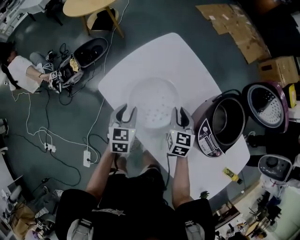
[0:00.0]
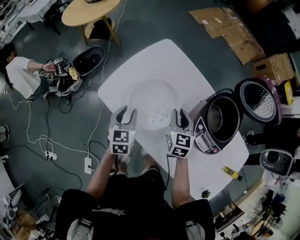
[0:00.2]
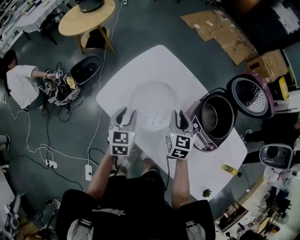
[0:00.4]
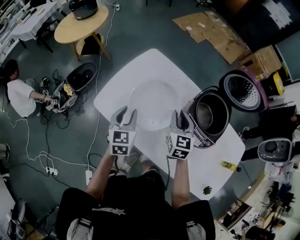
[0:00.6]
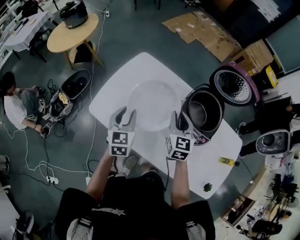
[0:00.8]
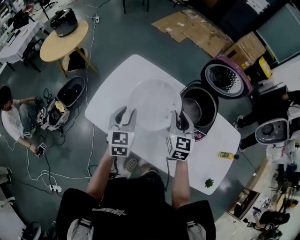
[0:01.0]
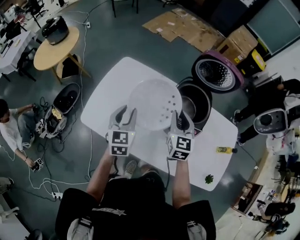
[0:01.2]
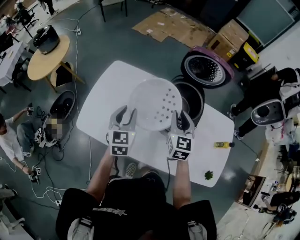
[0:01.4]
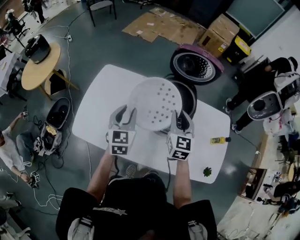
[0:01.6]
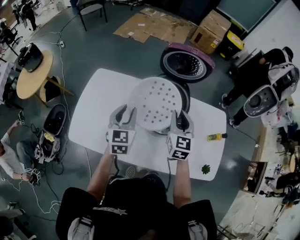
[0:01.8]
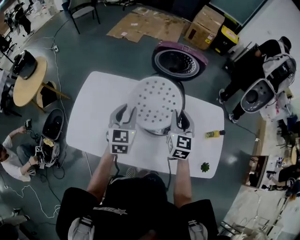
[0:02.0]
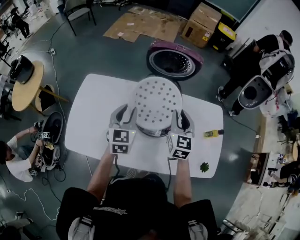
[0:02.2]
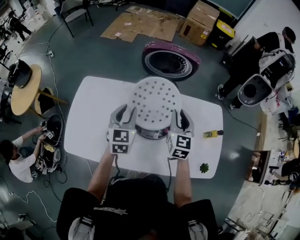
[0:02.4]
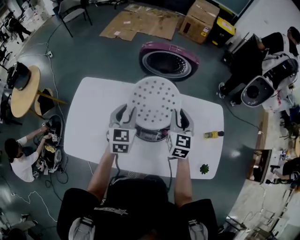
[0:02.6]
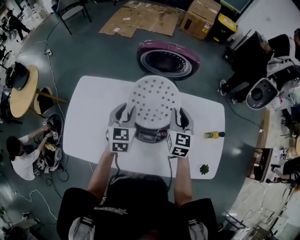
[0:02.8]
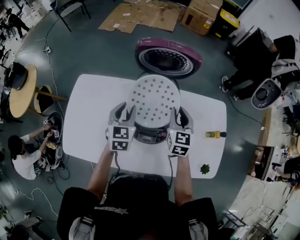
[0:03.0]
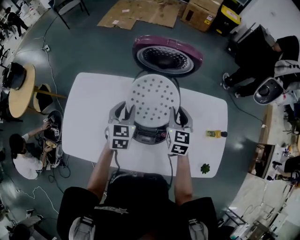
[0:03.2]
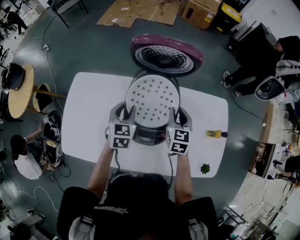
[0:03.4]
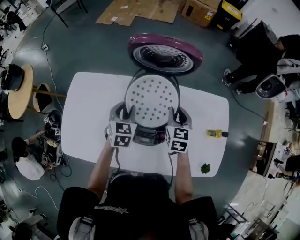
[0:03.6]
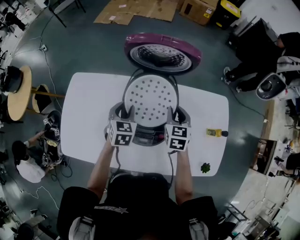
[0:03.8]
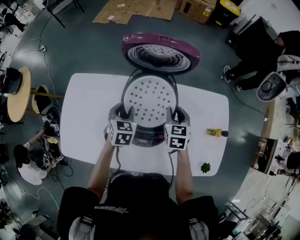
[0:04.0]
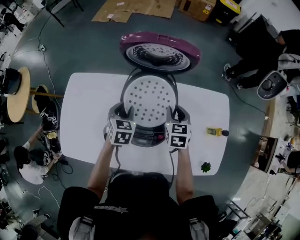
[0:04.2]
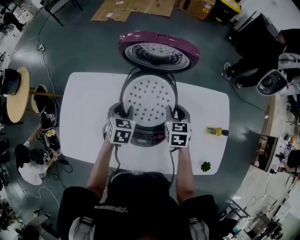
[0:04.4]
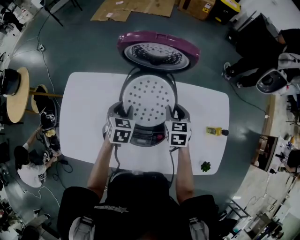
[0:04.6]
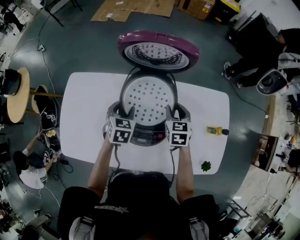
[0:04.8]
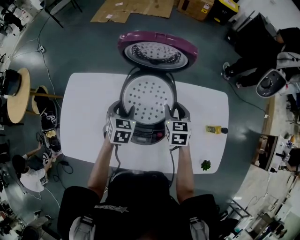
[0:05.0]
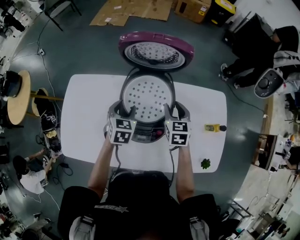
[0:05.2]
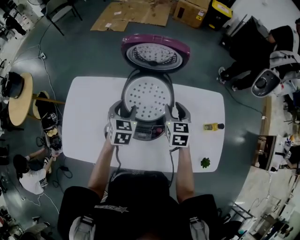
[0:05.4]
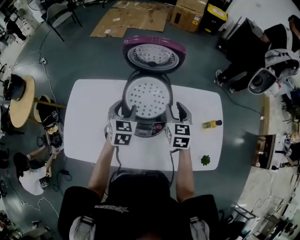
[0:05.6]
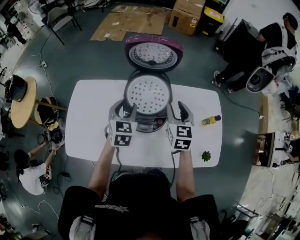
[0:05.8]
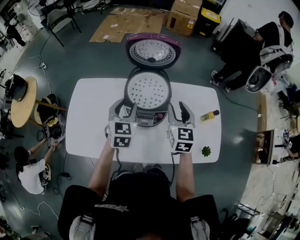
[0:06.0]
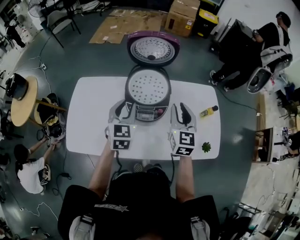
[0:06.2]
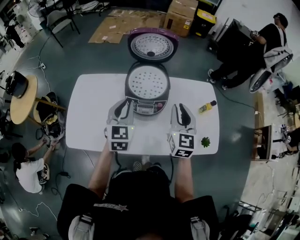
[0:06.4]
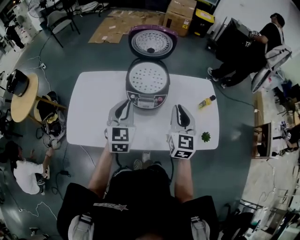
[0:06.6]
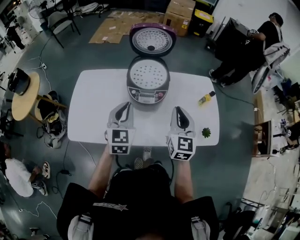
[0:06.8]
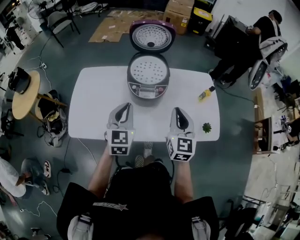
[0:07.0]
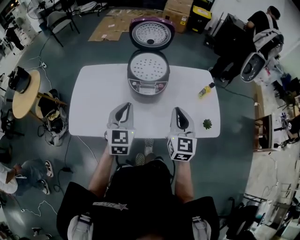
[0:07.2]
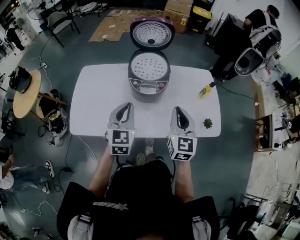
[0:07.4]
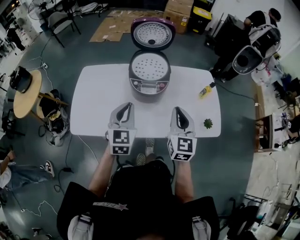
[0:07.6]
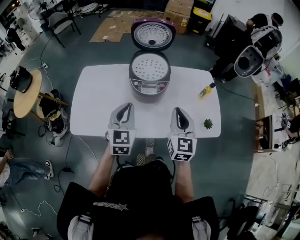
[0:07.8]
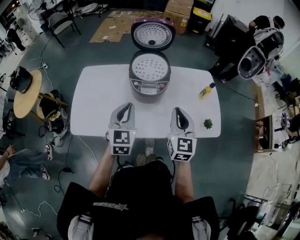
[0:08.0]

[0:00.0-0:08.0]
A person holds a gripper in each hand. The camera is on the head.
0.0 to 1.6 s: The right gripper shifts by about 30 cm, and swivels roughly 30 degrees. The left gripper moves some 25 cm, and turns by some 30 degrees.
1.6 to 3.2 s: The right gripper goes roughly 15 cm to the right, forward and downward, while the left gripper heads forward, to the right and downward, covering approximately 20 cm.
3.2 to 4.8 s: Both grippers travel together downward, about 5 cm.
4.8 to 6.4 s: The right gripper moves backward and upward, roughly 25 cm, and angles its fingers upward, by about 30 degrees. Meanwhile the left gripper travels upward and backward by some 25 cm, points its fingers approximately 30 degrees further upward, and closes up.
6.4 to 8.0 s: The two grippers go about 15 cm backward.

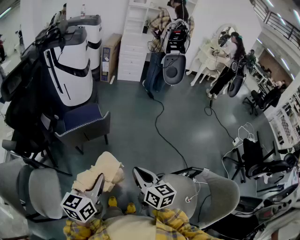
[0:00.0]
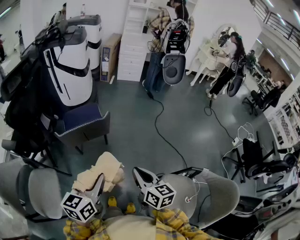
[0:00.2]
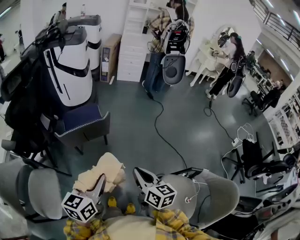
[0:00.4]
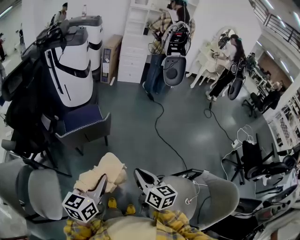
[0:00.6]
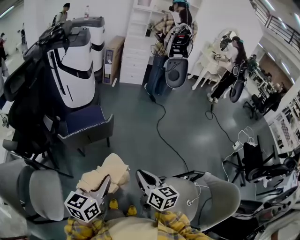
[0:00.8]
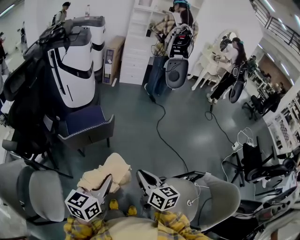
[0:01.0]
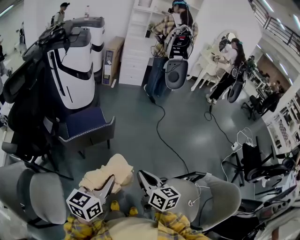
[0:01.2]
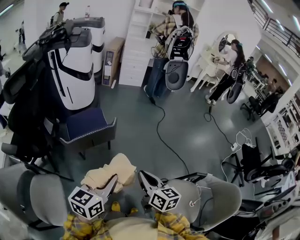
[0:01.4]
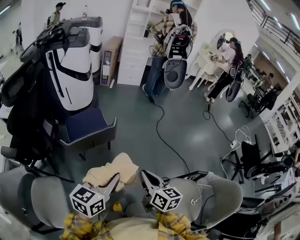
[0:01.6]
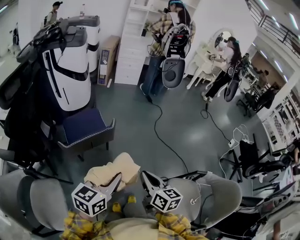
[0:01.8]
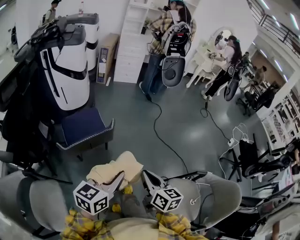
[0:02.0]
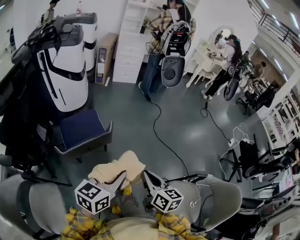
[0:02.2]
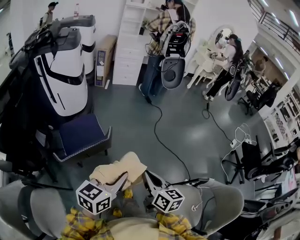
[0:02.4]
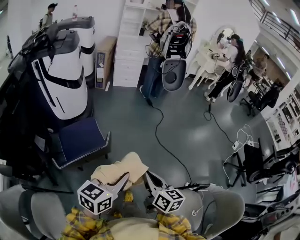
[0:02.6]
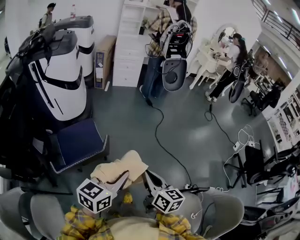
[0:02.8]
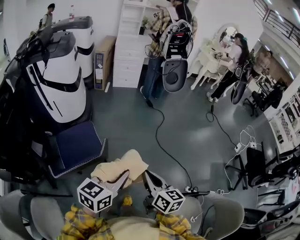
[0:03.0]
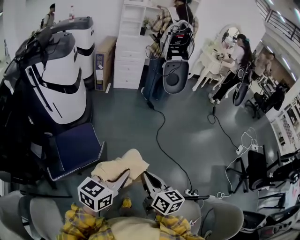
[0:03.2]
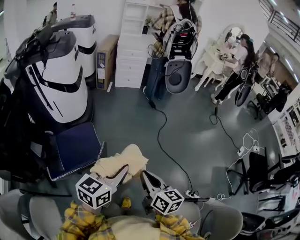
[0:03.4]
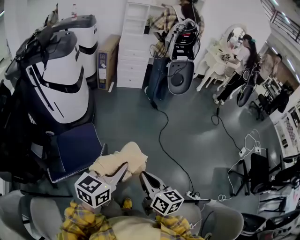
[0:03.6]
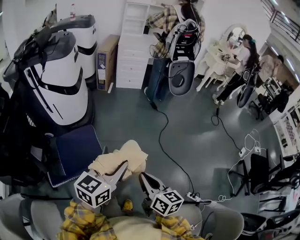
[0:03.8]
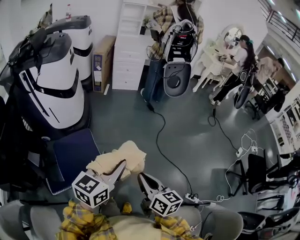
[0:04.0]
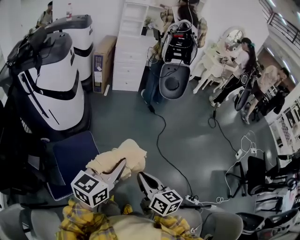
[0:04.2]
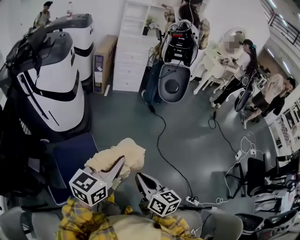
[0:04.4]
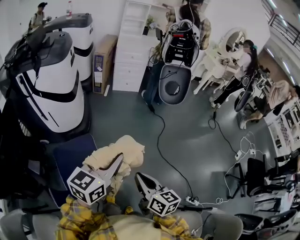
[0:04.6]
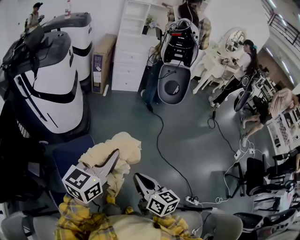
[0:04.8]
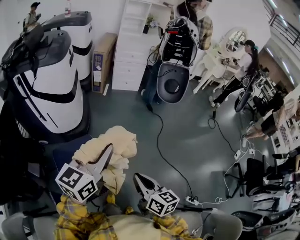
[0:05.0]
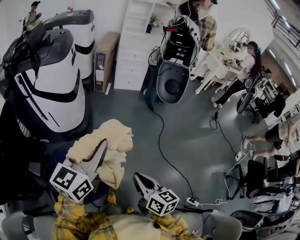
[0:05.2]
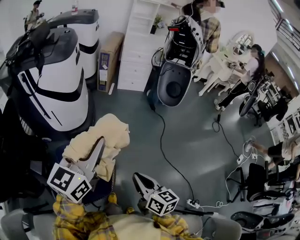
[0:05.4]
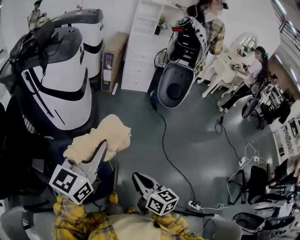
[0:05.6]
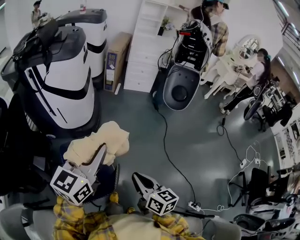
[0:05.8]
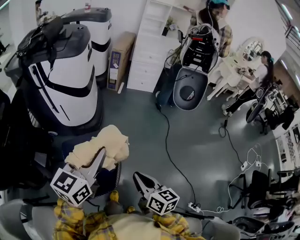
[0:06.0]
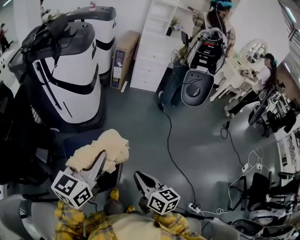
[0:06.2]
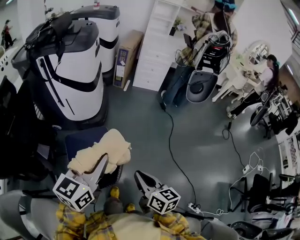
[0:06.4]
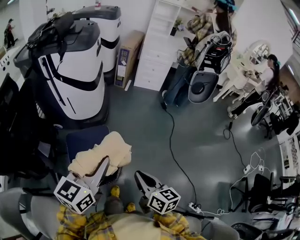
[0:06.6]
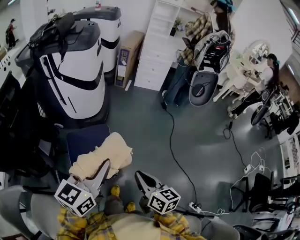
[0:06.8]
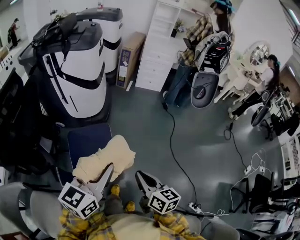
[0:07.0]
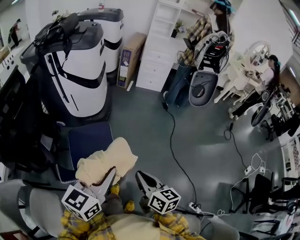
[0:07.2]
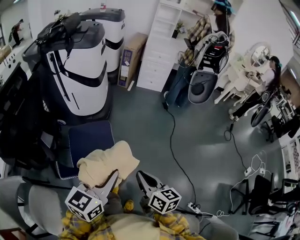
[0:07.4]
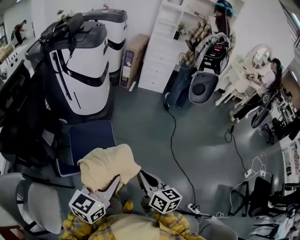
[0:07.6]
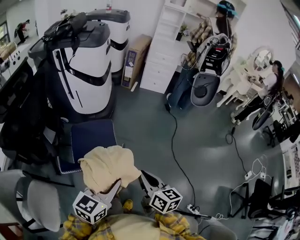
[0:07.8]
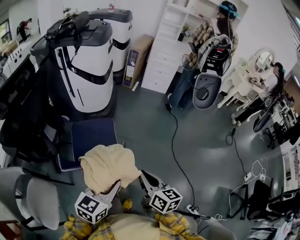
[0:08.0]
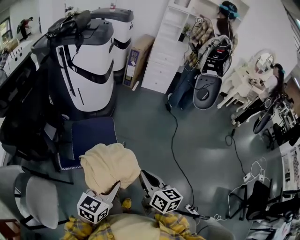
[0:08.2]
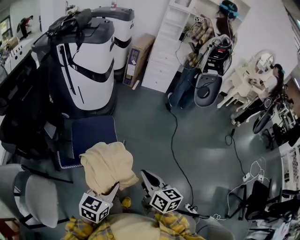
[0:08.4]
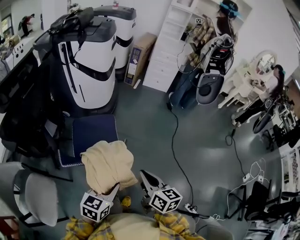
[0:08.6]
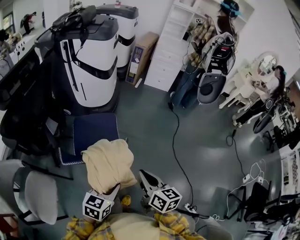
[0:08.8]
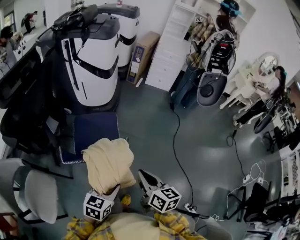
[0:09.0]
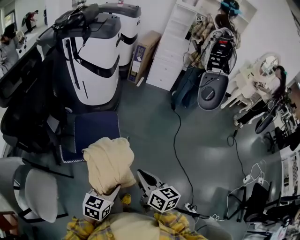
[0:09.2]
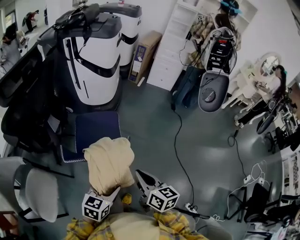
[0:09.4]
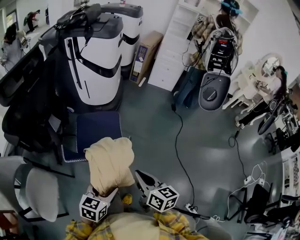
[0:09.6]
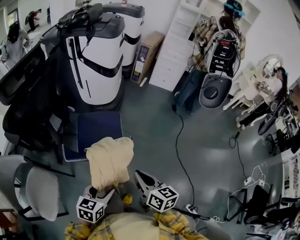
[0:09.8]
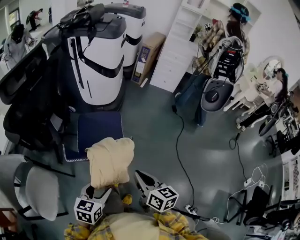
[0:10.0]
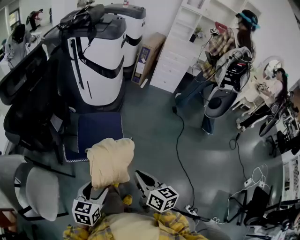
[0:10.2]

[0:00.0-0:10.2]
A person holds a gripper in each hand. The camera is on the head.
0.0 to 1.4 s: There are only small adjustments of the grippers.
1.4 to 3.0 s: The grippers both shift forward by approximately 20 cm.
3.0 to 4.4 s: The two grippers go some 15 cm forward and to the left.
4.4 to 5.8 s: The right gripper travels to the left by about 5 cm; the left gripper is displaced to the left and forward by about 15 cm.
5.8 to 7.2 s: The right gripper moves backward, roughly 10 cm, while the left gripper goes roughly 15 cm backward.
7.2 to 8.8 s: The right gripper shifts about 5 cm backward; the left gripper shifts some 20 cm downward and backward, swivels approximately 20 degrees, and opens its fingers.
8.8 to 10.2 s: The left gripper is displaced to the left by roughly 10 cm, and opens up.

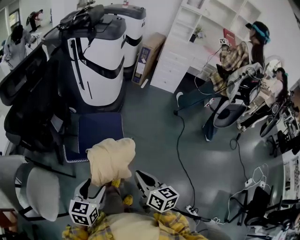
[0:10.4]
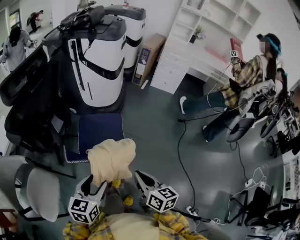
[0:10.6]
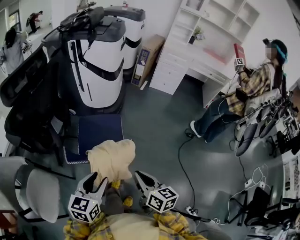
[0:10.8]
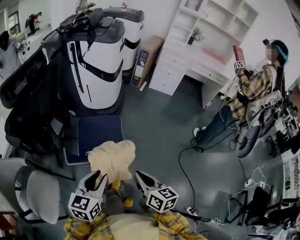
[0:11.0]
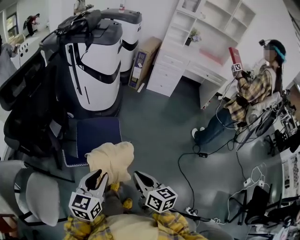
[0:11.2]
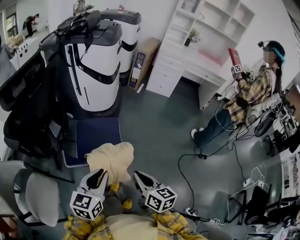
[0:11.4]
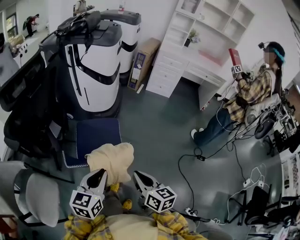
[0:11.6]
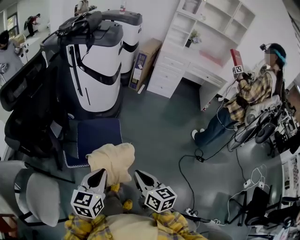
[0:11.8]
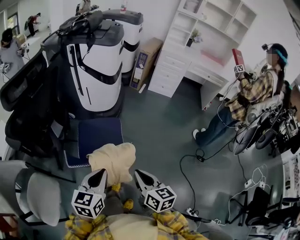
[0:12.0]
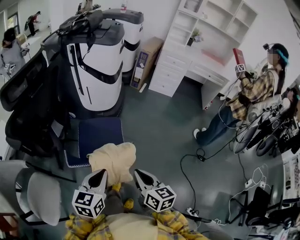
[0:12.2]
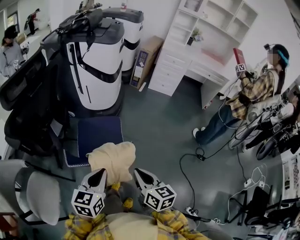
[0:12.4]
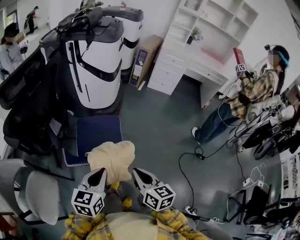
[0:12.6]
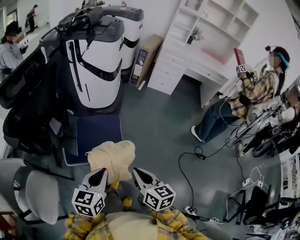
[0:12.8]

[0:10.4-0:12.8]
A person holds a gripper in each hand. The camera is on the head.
10.4 to 11.6 s: The left gripper moves upward and forward, roughly 10 cm, and closes its fingers.
11.6 to 12.8 s: The grippers make only small movements.

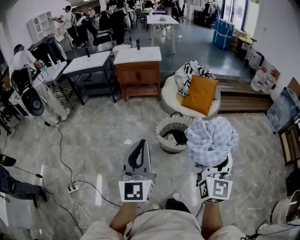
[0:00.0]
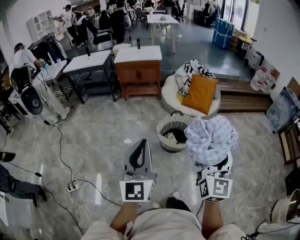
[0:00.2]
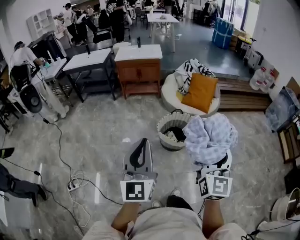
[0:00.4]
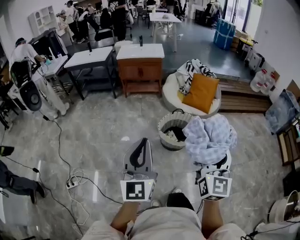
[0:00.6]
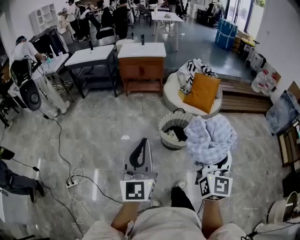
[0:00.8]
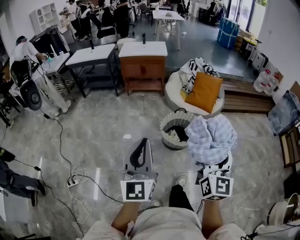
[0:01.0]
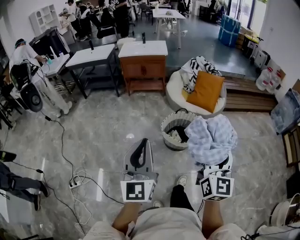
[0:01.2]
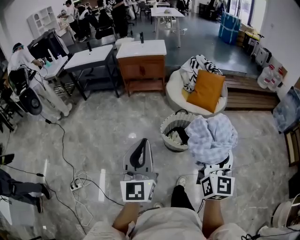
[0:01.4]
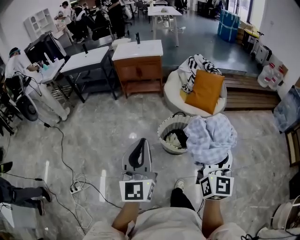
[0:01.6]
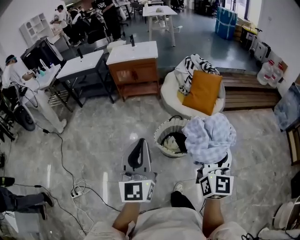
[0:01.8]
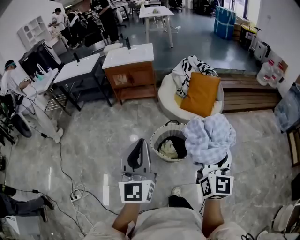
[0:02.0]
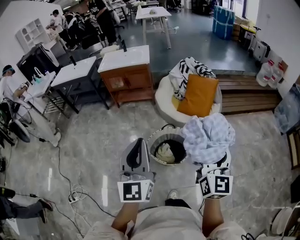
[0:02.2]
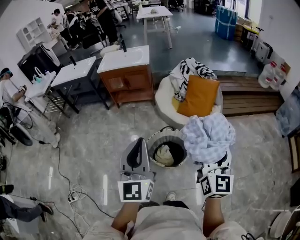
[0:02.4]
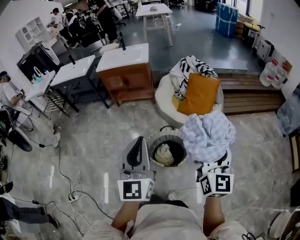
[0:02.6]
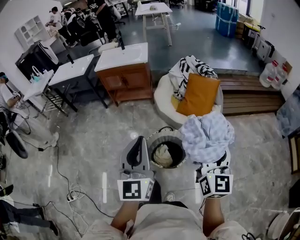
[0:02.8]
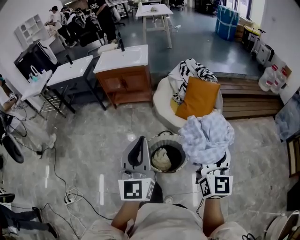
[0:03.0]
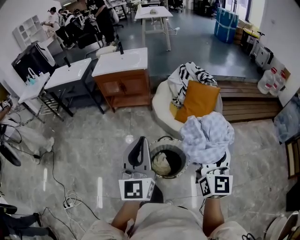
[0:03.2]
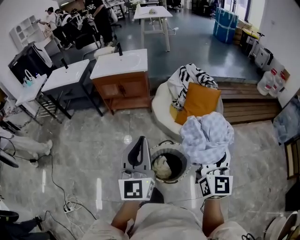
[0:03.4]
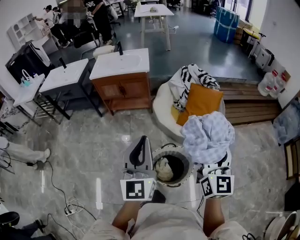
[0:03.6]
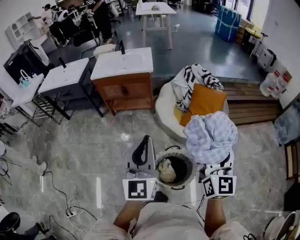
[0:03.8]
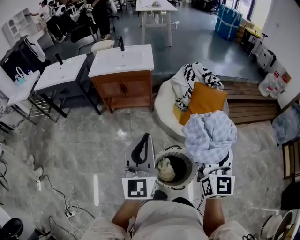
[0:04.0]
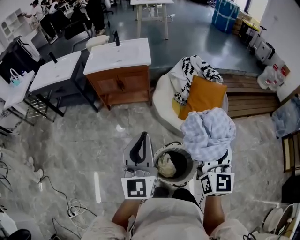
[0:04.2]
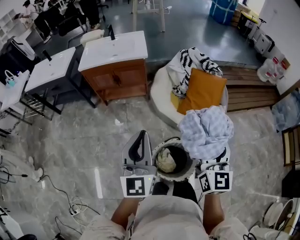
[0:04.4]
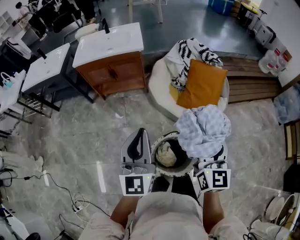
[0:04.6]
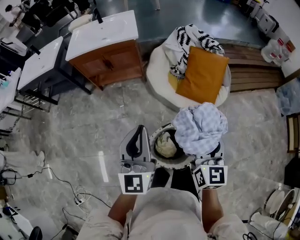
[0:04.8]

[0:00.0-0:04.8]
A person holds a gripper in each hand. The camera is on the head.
0.0 to 1.6 s: Both grippers move forward, about 10 cm.
1.6 to 3.2 s: The grippers both shift forward and to the right by about 30 cm.
3.2 to 4.8 s: The grippers both shift forward, downward and to the left by approximately 25 cm.
